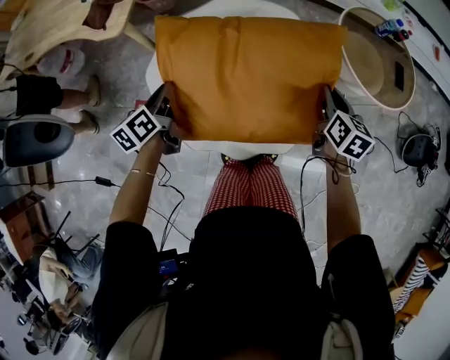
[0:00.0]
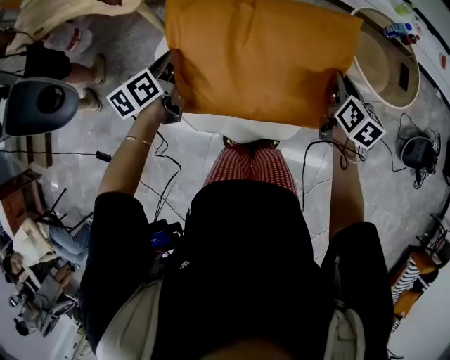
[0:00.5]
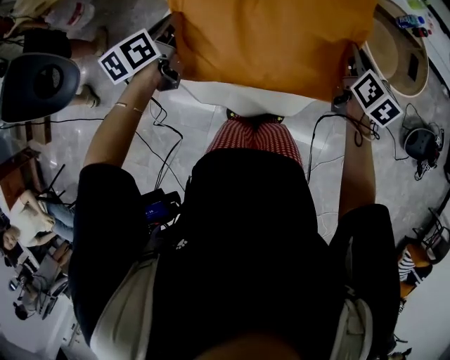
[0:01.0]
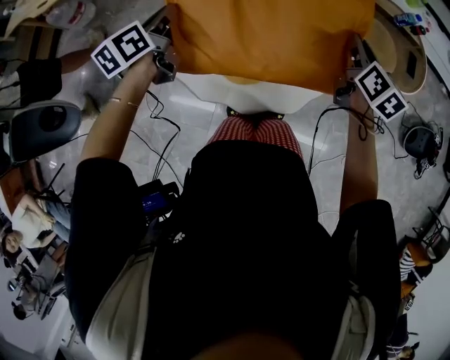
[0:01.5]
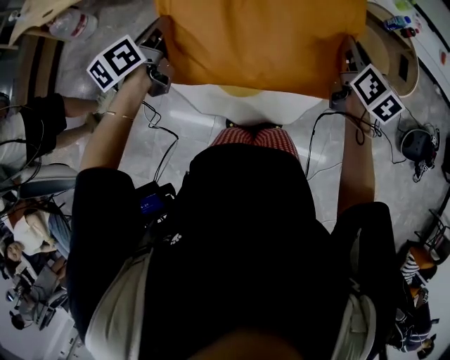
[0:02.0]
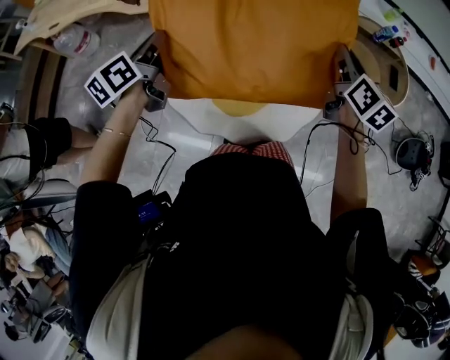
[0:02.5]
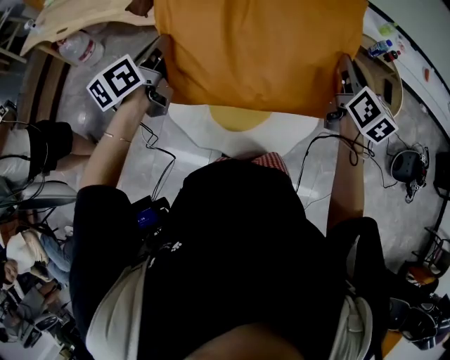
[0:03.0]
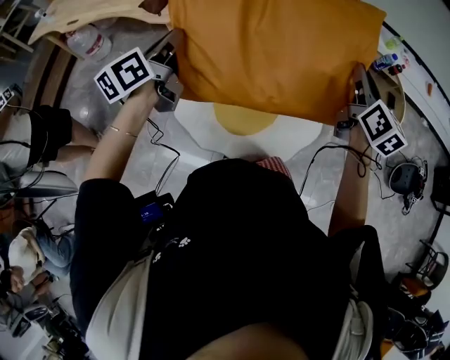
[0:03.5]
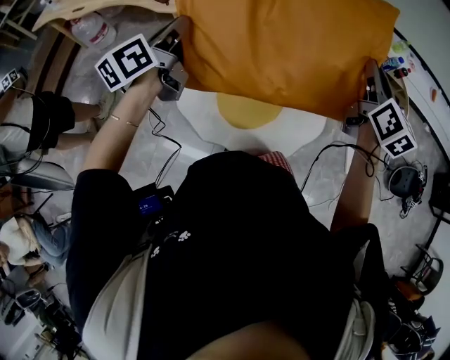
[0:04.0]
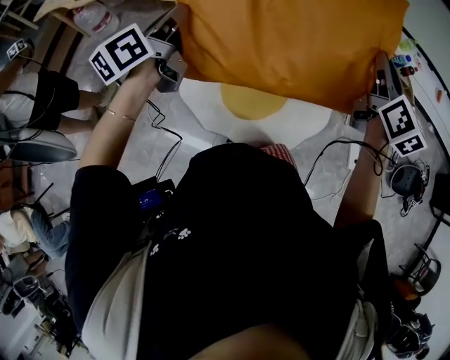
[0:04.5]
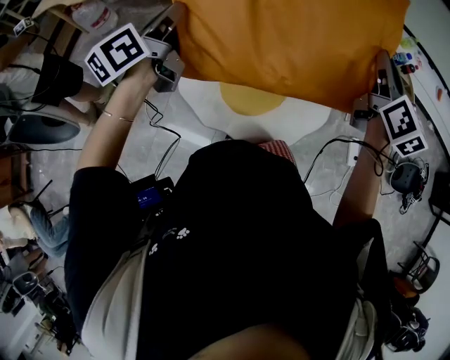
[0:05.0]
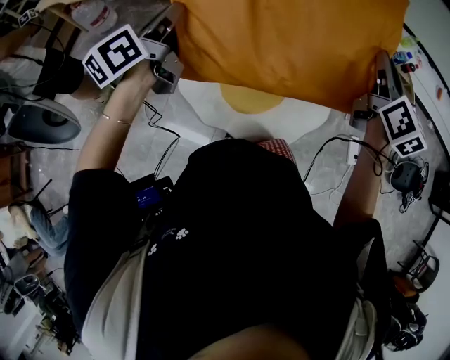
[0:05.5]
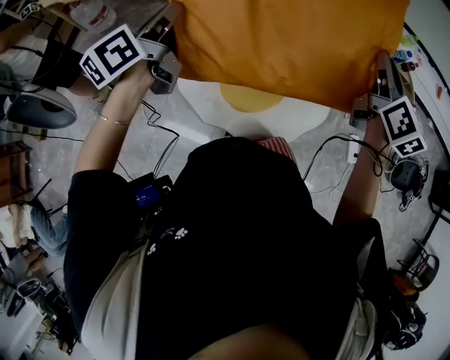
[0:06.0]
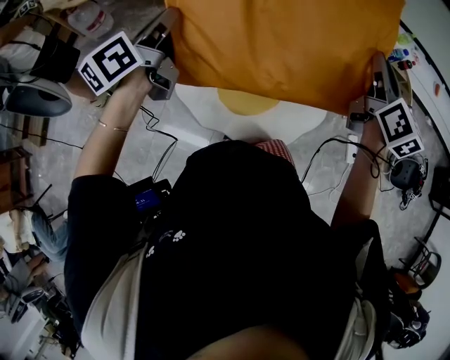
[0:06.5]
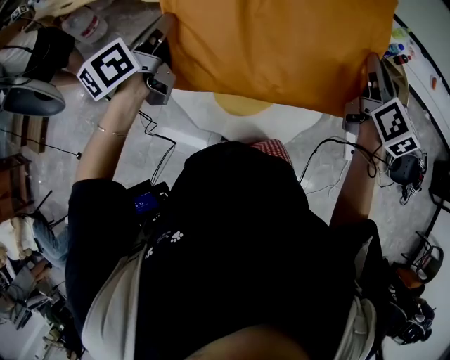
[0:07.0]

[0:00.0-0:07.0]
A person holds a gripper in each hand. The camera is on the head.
0:00.0 to 0:02.0: The grippers both shift upward by roughly 15 cm.
0:02.0 to 0:03.5: The two grippers go roughly 10 cm upward.
0:03.5 to 0:07.0: There are only small adjustments of the grippers.

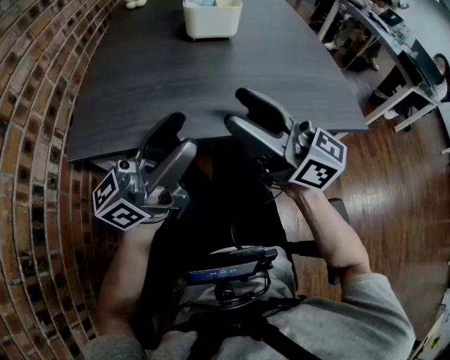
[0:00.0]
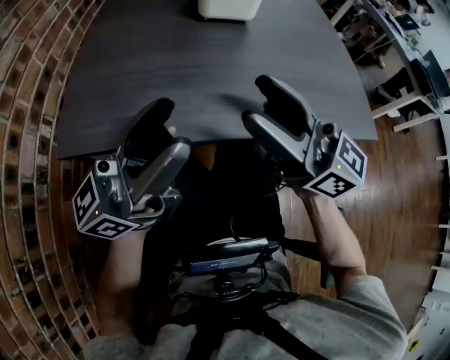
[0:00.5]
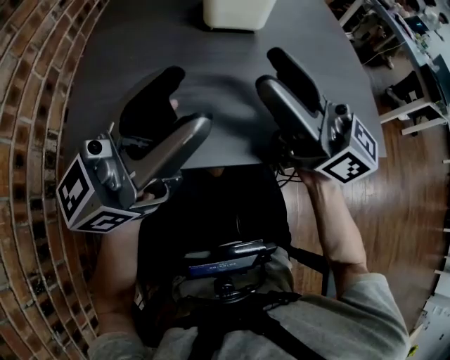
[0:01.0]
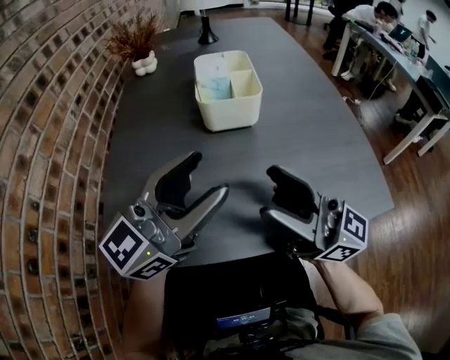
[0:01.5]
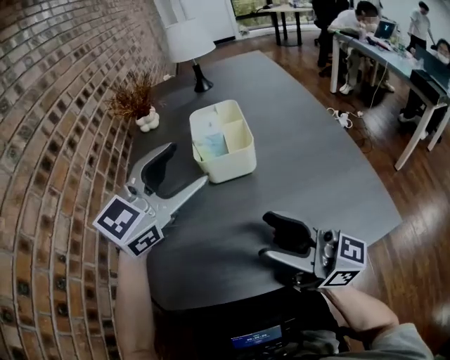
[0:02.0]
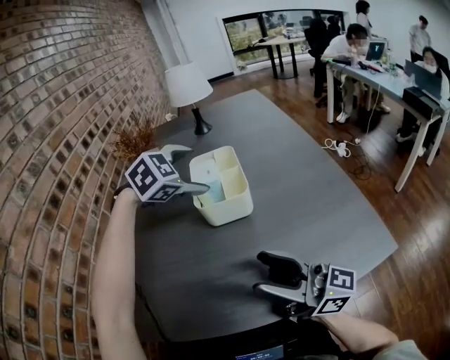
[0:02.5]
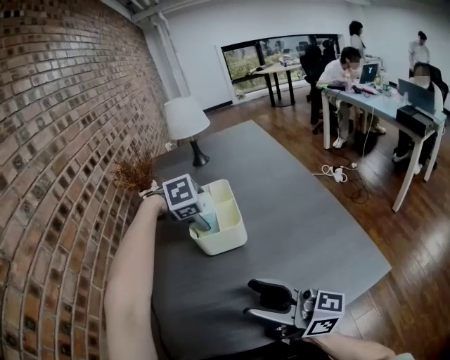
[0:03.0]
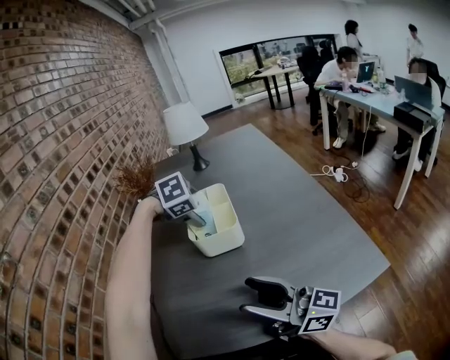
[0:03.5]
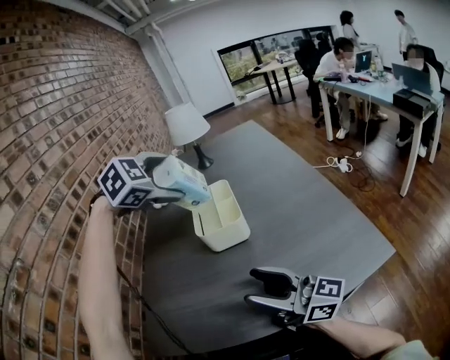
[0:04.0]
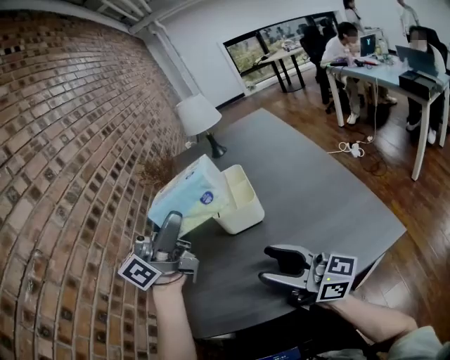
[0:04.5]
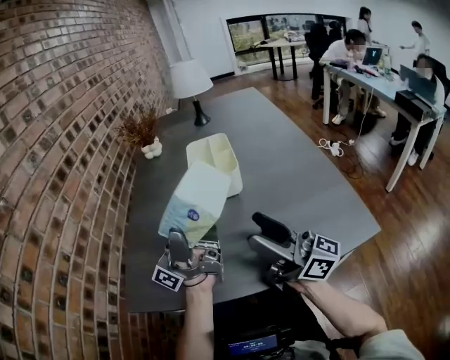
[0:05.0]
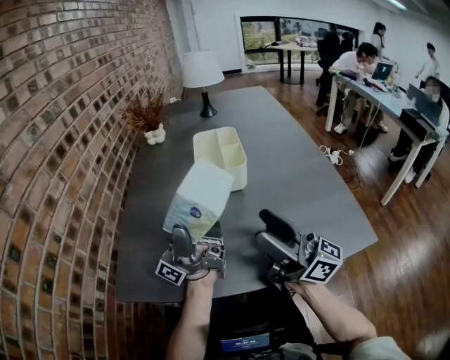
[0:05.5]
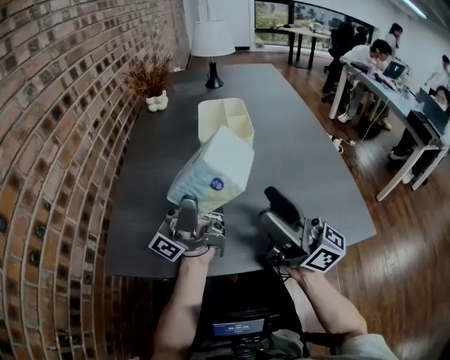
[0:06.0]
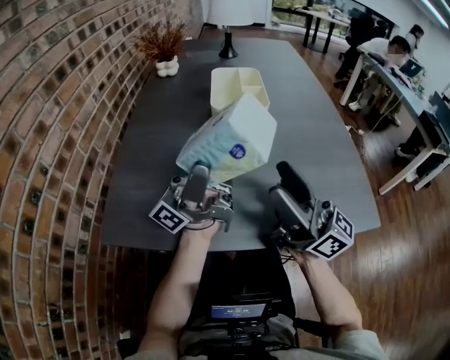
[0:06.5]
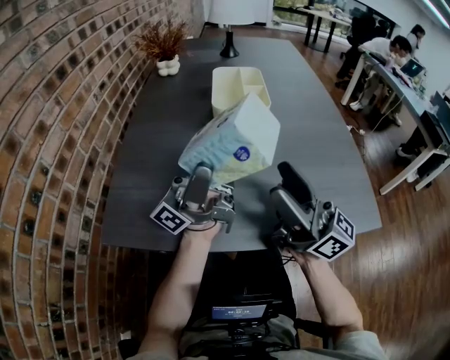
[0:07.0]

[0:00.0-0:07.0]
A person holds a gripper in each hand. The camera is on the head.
0:00.0 to 0:02.0: The right gripper is displaced forward by about 10 cm, while the left gripper moves forward, about 30 cm, and tips its fingers downward by some 40 degrees.
0:02.0 to 0:03.5: The left gripper moves forward and downward, some 20 cm, and points its fingers approximately 70 degrees further downward.
0:03.5 to 0:05.0: The left gripper heads backward and upward, covering some 30 cm, and tips its fingers upward by about 130 degrees.
0:05.0 to 0:07.0: There are only small adjustments of the grippers.

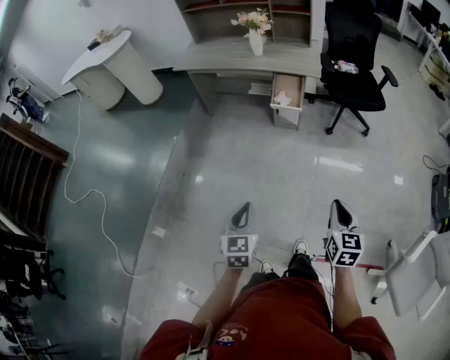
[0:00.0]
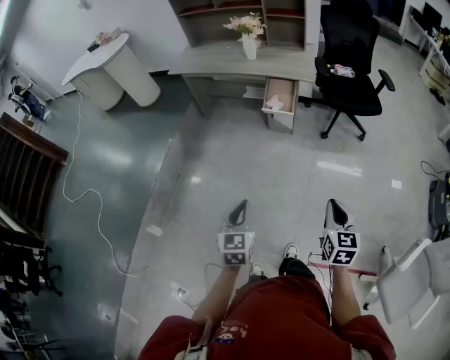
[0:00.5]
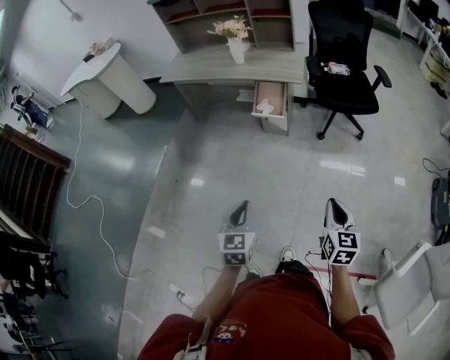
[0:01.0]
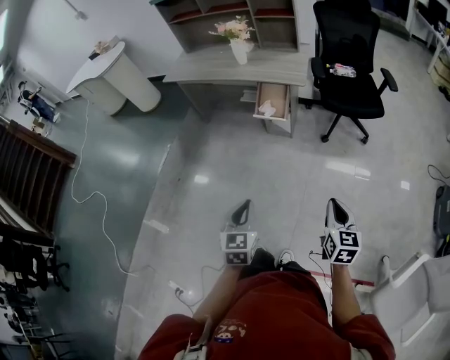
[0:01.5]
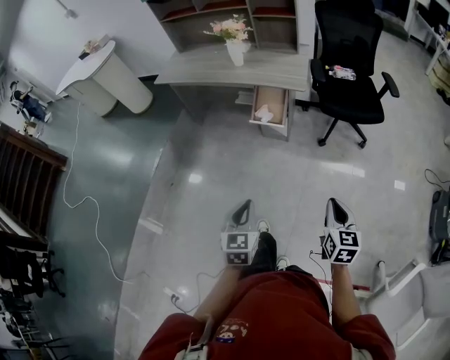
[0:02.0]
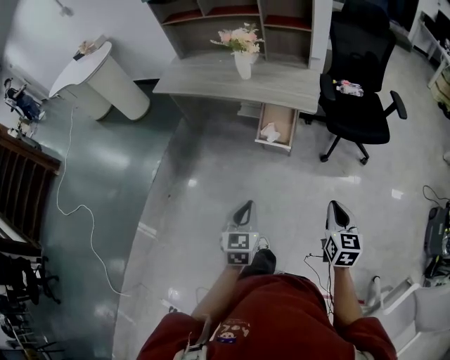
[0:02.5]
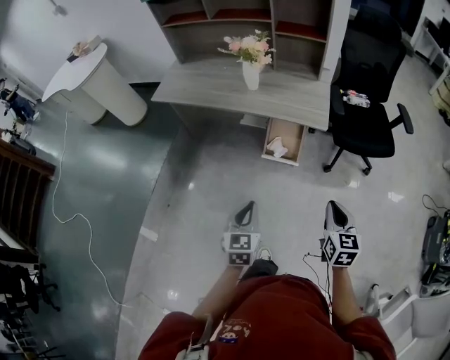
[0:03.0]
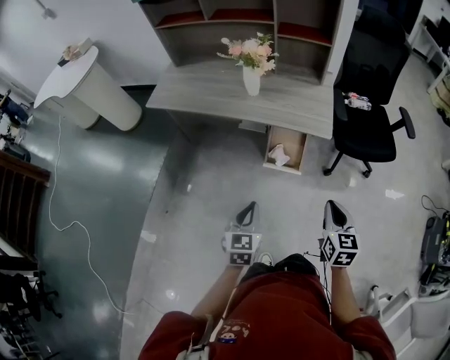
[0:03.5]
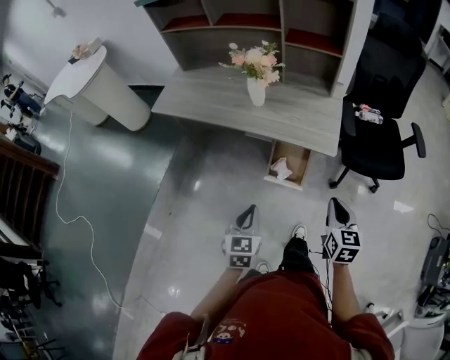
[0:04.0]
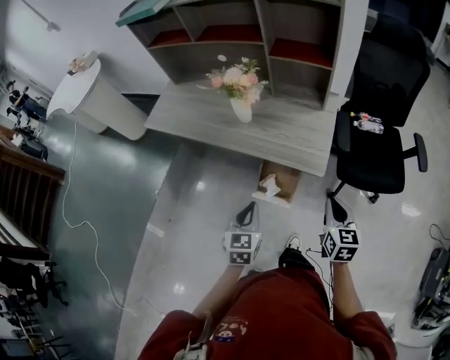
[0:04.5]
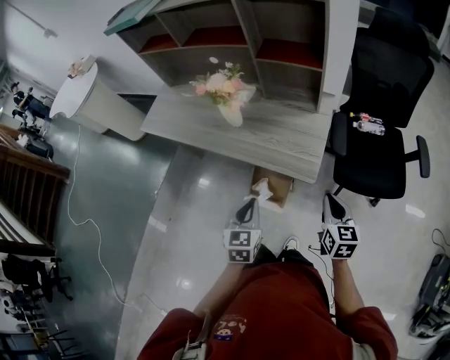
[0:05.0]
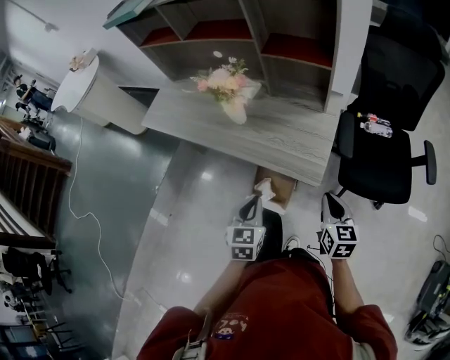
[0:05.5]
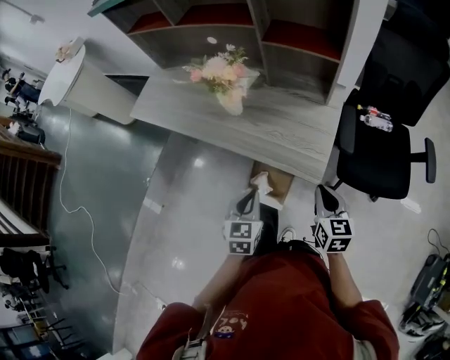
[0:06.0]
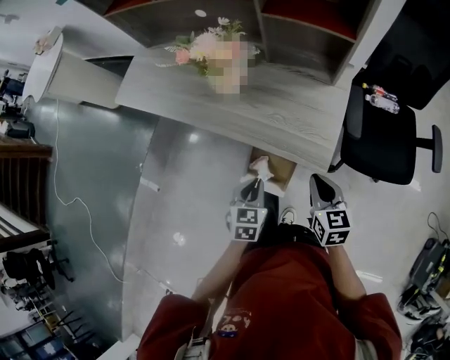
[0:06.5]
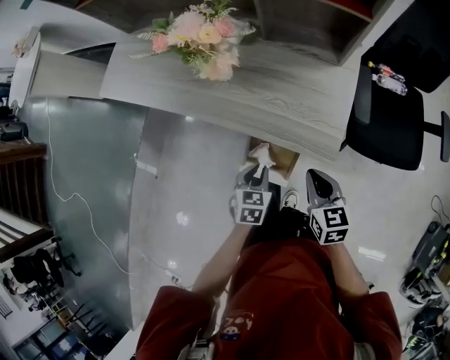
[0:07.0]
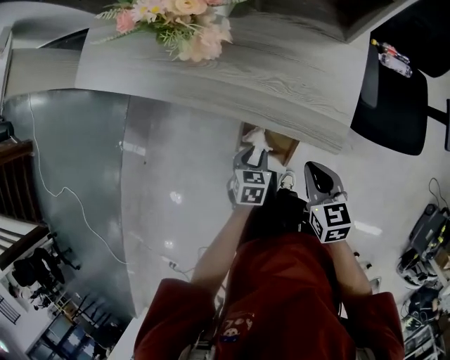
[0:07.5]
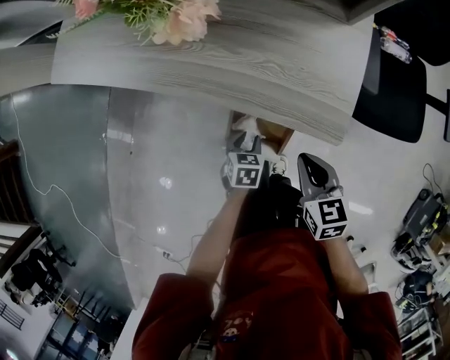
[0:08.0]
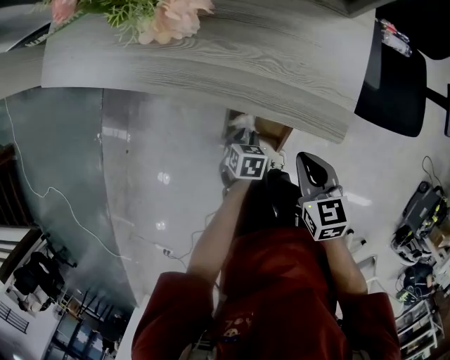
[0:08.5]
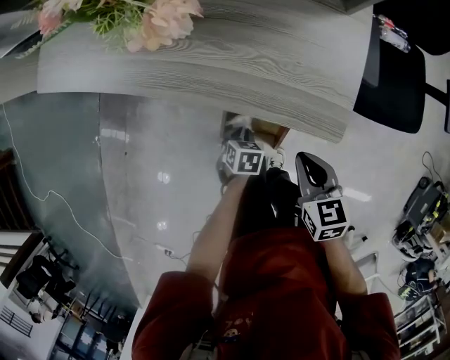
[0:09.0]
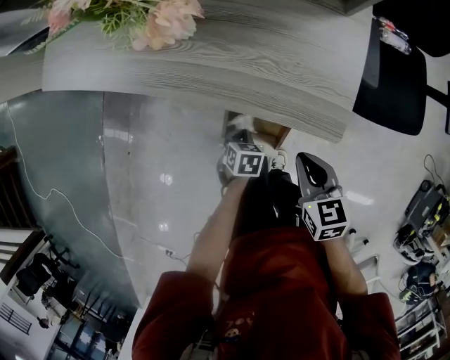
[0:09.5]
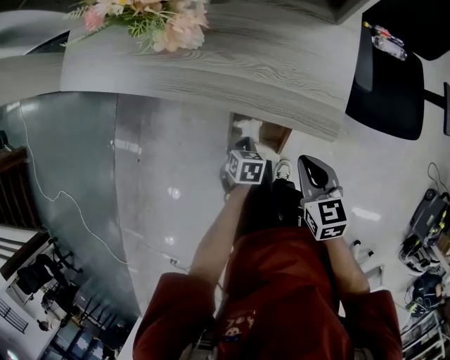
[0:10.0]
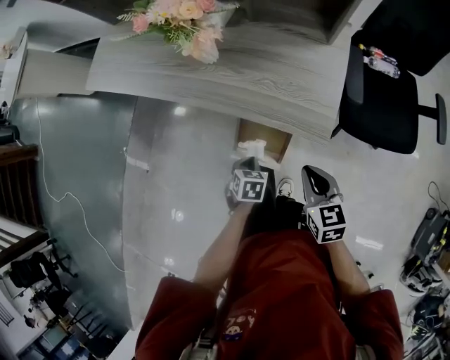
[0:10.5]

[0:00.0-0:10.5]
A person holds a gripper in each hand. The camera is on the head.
0:00.0 to 0:02.0: The left gripper moves to the right and forward, about 25 cm. Meanwhile the right gripper goes some 25 cm forward and to the right.
0:02.0 to 0:04.0: The grippers both shift forward by about 40 cm.
0:04.0 to 0:06.5: The right gripper travels forward by roughly 25 cm; the left gripper shifts some 30 cm forward, to the right and downward.
0:06.5 to 0:08.5: The left gripper heads downward, covering about 25 cm, and turns by roughly 30 degrees; the right gripper moves downward and to the left, about 15 cm.
0:08.5 to 0:10.5: The two grippers go about 10 cm upward. The left gripper closes up.

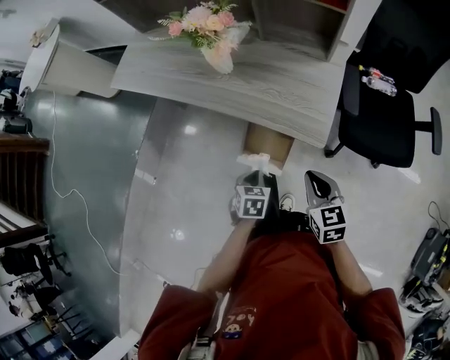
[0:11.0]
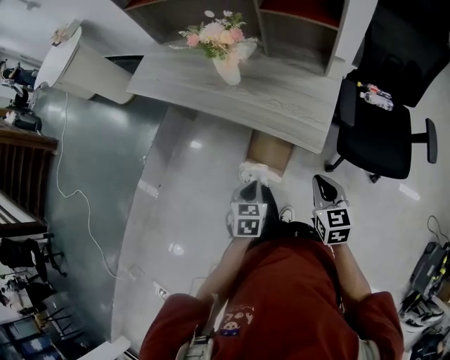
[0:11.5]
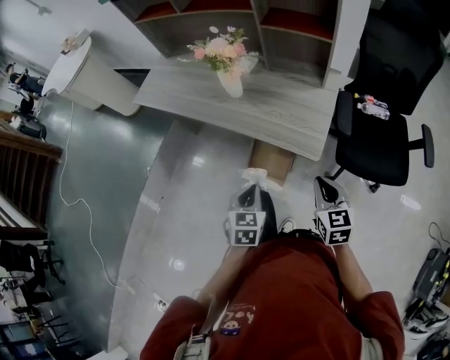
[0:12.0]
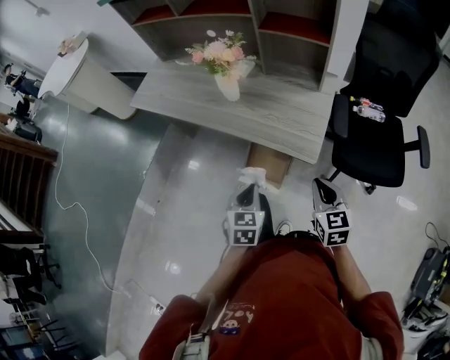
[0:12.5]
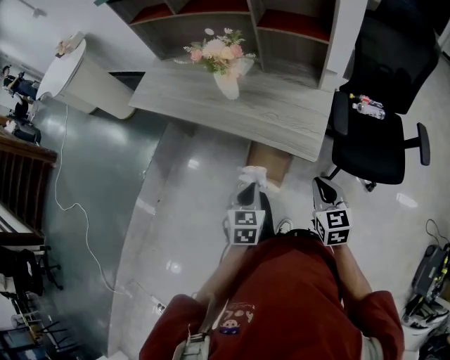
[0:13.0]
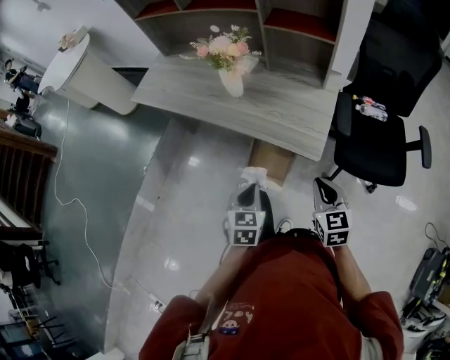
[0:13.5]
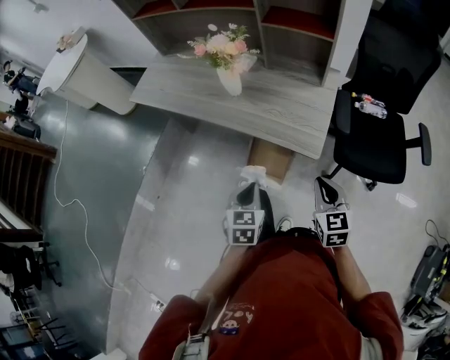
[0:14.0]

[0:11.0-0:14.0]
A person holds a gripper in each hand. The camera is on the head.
0:11.0 to 0:12.5: The right gripper goes about 5 cm upward. Meanwhile the left gripper heads upward, covering roughly 15 cm, and swivels about 20 degrees.
0:12.5 to 0:14.0: The grippers make only small movements.
